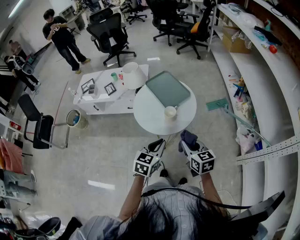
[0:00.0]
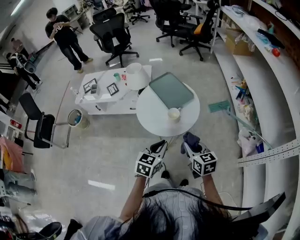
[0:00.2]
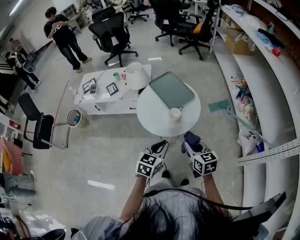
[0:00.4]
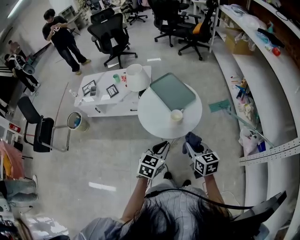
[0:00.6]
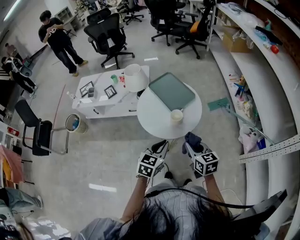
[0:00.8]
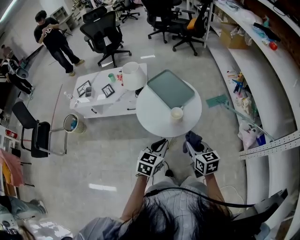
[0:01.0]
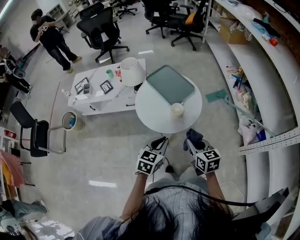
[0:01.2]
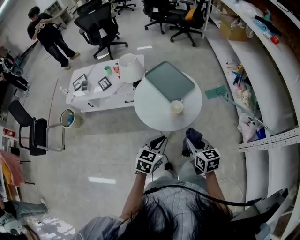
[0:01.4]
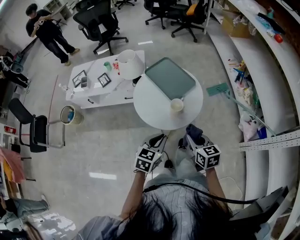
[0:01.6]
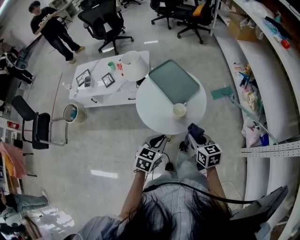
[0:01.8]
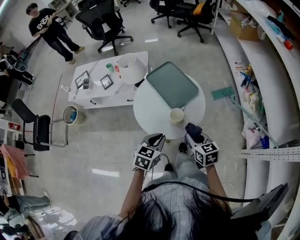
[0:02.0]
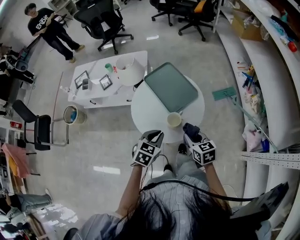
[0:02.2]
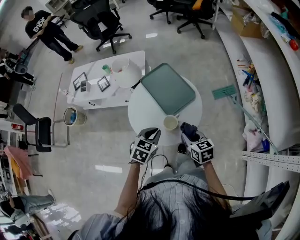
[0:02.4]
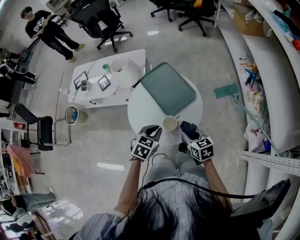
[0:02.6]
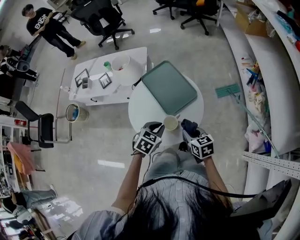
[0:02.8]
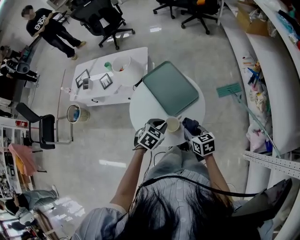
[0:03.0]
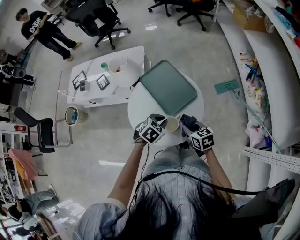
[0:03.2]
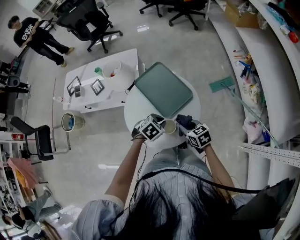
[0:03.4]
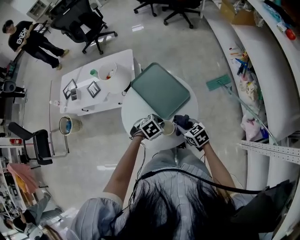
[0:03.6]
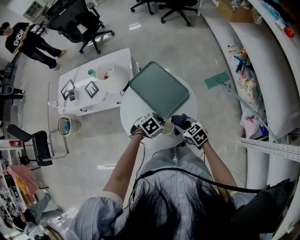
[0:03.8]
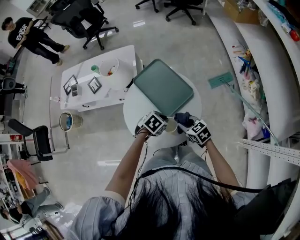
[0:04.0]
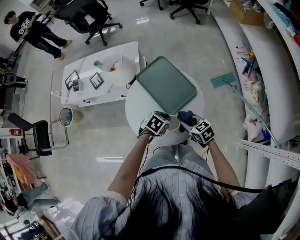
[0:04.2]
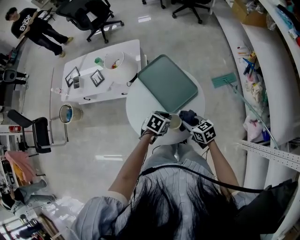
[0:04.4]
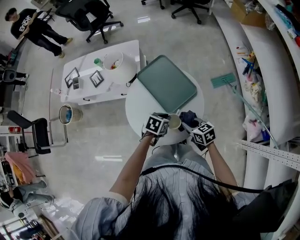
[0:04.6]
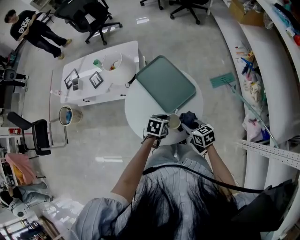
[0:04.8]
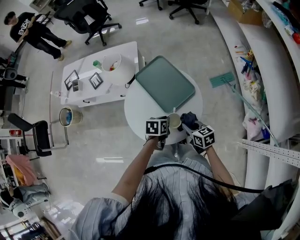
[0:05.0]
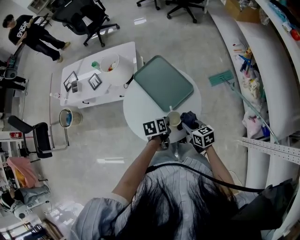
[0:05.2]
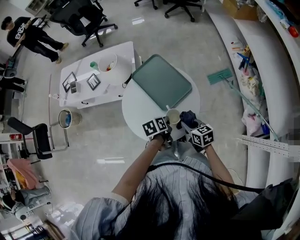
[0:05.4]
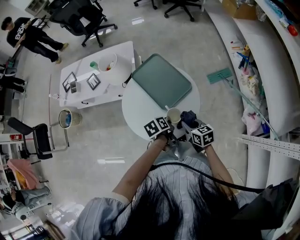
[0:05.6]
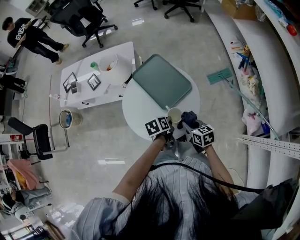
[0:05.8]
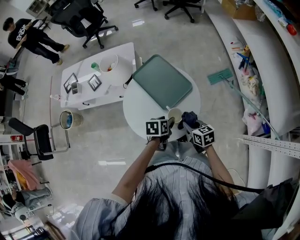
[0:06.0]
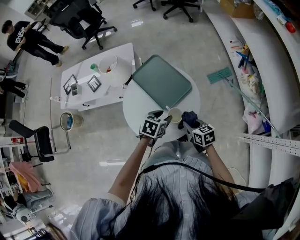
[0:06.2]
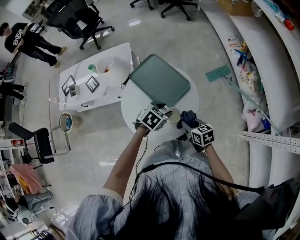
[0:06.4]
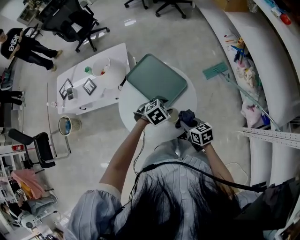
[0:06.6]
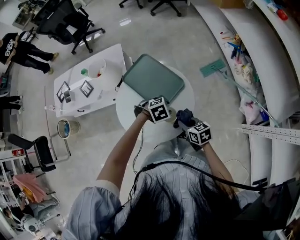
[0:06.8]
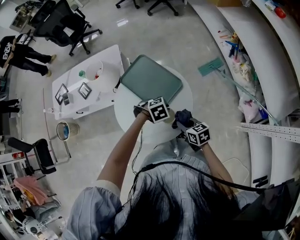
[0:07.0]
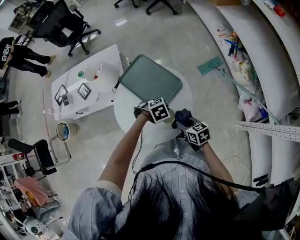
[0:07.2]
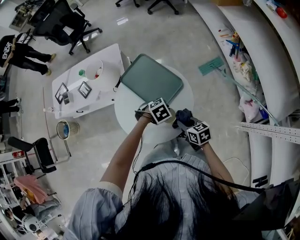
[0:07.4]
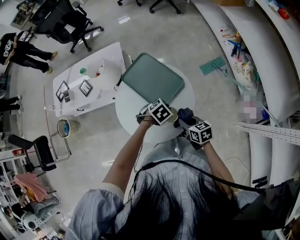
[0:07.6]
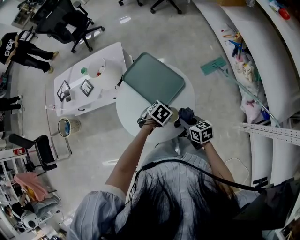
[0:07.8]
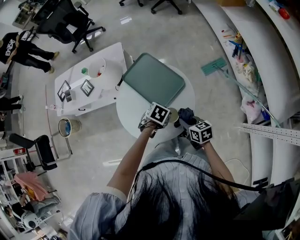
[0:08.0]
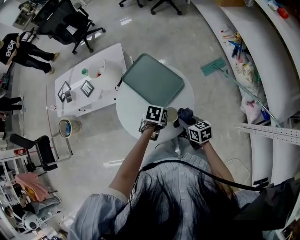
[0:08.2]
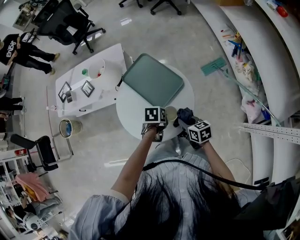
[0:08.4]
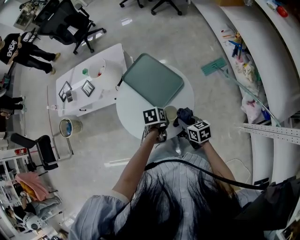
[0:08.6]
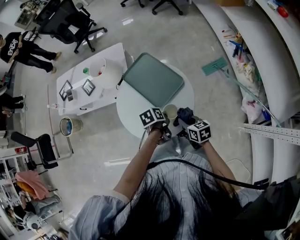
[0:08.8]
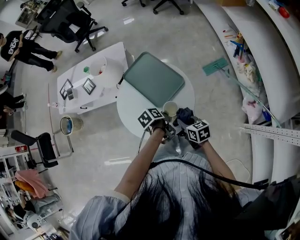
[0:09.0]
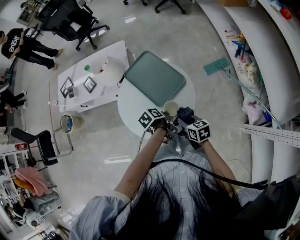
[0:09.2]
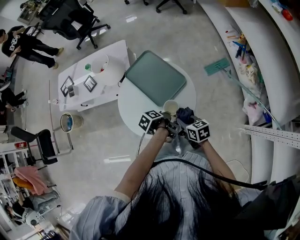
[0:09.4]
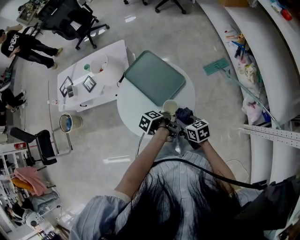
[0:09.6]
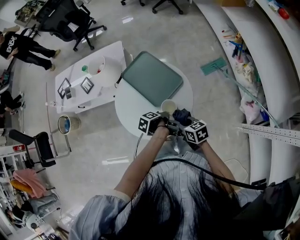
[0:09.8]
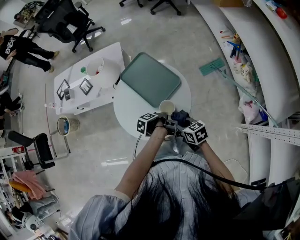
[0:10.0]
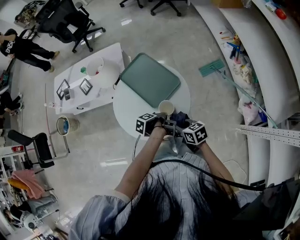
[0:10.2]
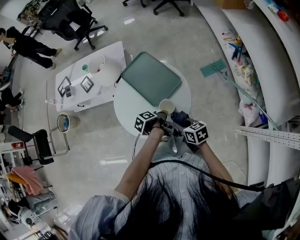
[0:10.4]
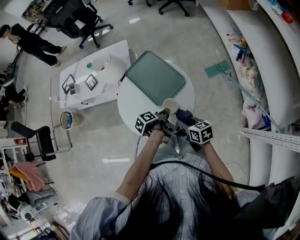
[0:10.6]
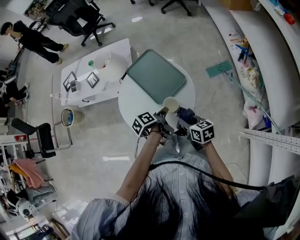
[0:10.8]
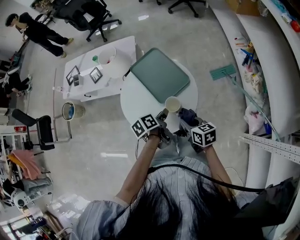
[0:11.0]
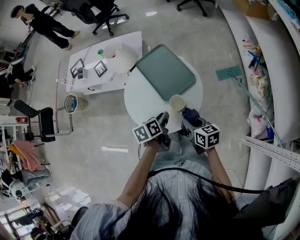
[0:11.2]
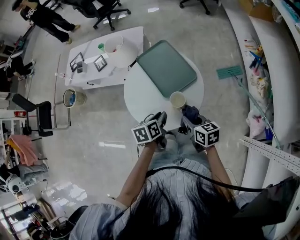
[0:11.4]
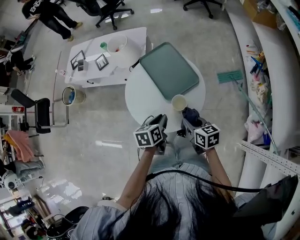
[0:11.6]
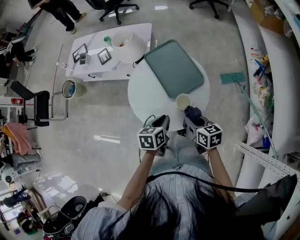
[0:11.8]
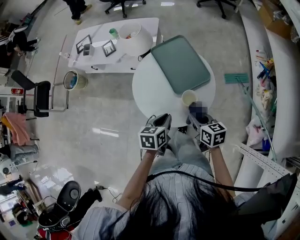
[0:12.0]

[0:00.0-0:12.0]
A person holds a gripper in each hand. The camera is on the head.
0:00.0 to 0:01.6: The left gripper moves some 5 cm; the right gripper changes place by roughly 5 cm.
0:01.6 to 0:03.0: Both grippers travel together forward and downward, some 20 cm. The left gripper turns by approximately 20 degrees.
0:03.0 to 0:04.4: The right gripper moves some 5 cm. Meanwhile the left gripper moves downward, roughly 5 cm.
0:04.4 to 0:06.0: The left gripper changes its angle by some 30 degrees, and opens.
0:06.0 to 0:07.6: The left gripper moves about 5 cm, rotates around the line of its fingers by roughly 60 degrees, clockwise from behind, and closes its fingers.
0:07.6 to 0:09.0: The left gripper moves some 5 cm, and rolls counterclockwise, seen from behind, by roughly 90 degrees.
0:09.0 to 0:10.4: The left gripper swivels some 30 degrees.
0:10.4 to 0:12.0: The left gripper heads to the left and upward, covering roughly 10 cm, and twists approximately 60 degrees clockwise, seen from behind.

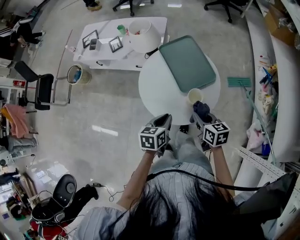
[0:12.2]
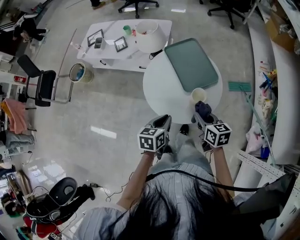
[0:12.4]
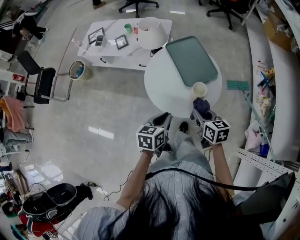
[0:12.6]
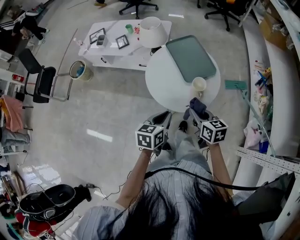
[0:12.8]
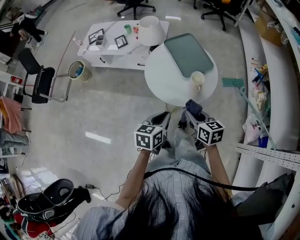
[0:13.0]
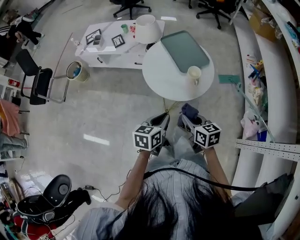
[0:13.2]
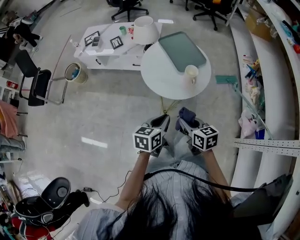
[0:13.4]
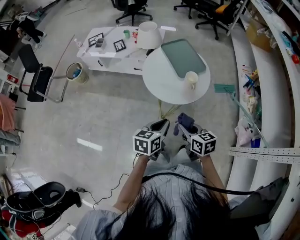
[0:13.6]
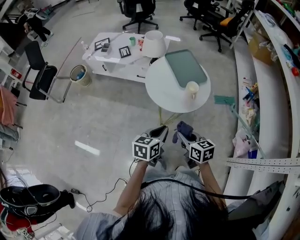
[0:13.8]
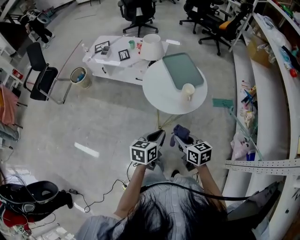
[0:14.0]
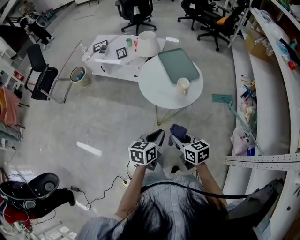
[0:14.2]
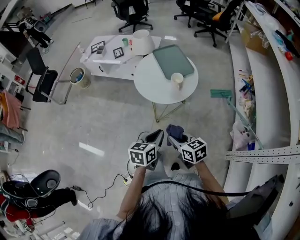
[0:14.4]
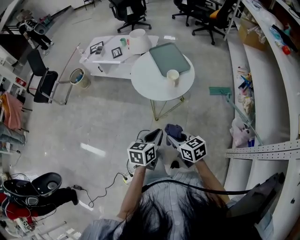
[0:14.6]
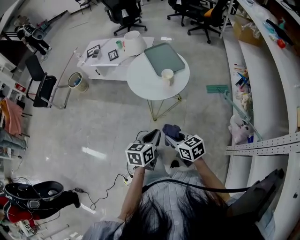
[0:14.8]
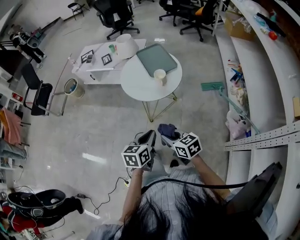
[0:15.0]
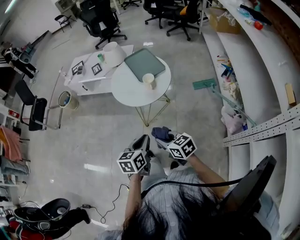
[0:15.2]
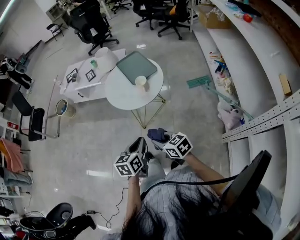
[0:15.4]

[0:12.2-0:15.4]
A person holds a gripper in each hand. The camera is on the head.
0:12.2 to 0:13.8: The left gripper is displaced backward and upward by some 20 cm; the right gripper shifts about 25 cm backward and to the left.
0:13.8 to 0:15.4: Both grippers travel together backward and to the right, some 15 cm.

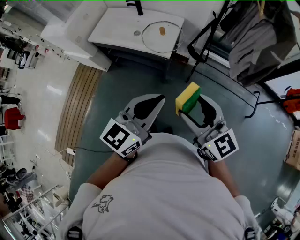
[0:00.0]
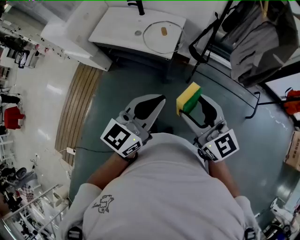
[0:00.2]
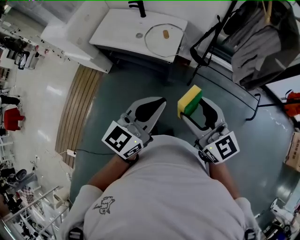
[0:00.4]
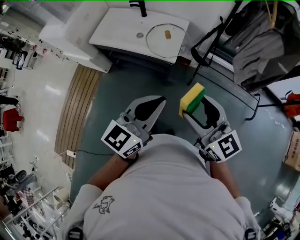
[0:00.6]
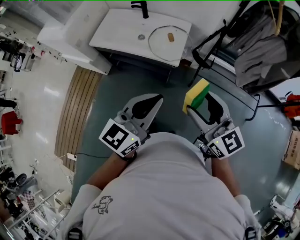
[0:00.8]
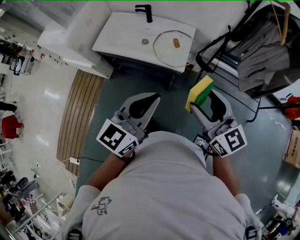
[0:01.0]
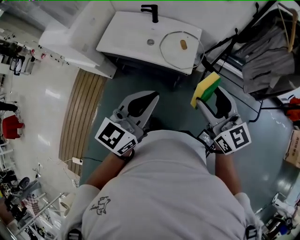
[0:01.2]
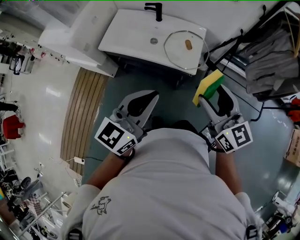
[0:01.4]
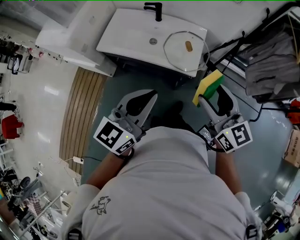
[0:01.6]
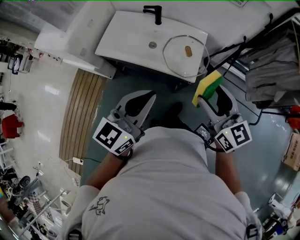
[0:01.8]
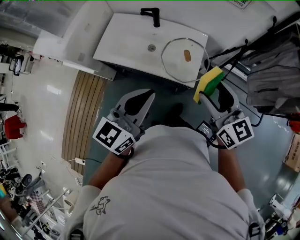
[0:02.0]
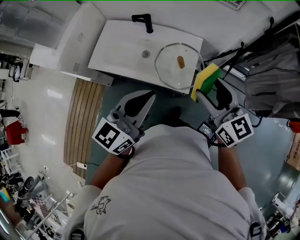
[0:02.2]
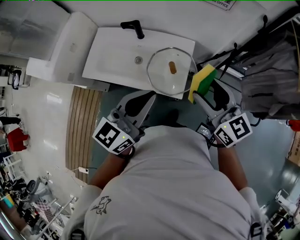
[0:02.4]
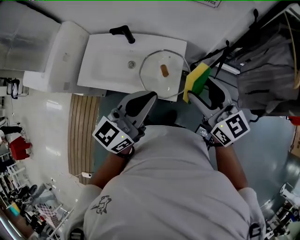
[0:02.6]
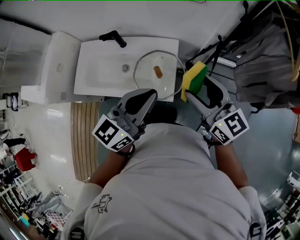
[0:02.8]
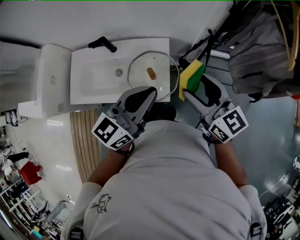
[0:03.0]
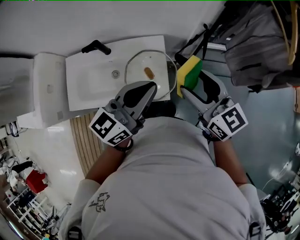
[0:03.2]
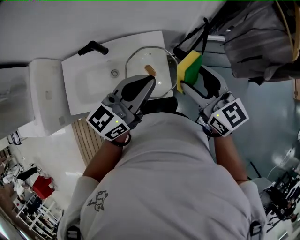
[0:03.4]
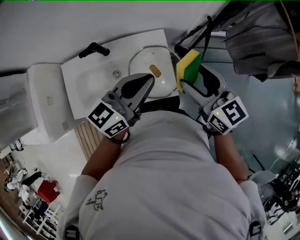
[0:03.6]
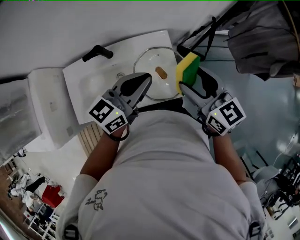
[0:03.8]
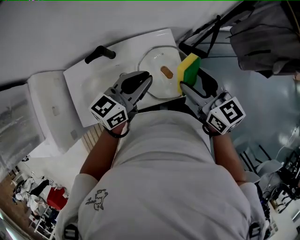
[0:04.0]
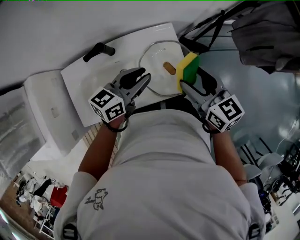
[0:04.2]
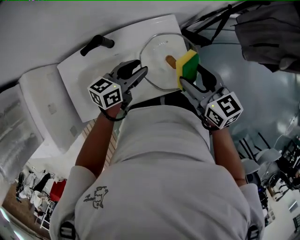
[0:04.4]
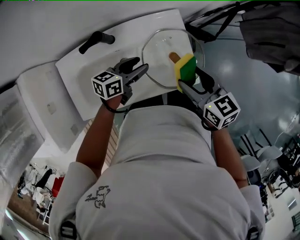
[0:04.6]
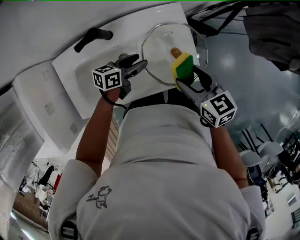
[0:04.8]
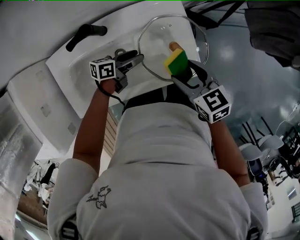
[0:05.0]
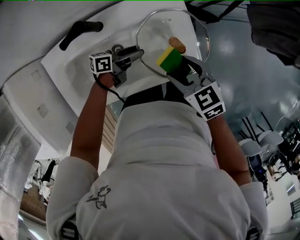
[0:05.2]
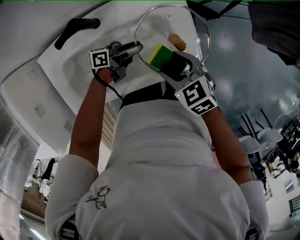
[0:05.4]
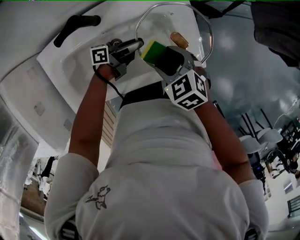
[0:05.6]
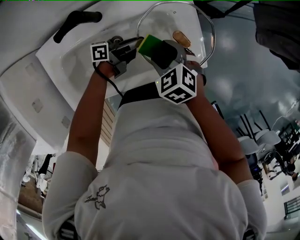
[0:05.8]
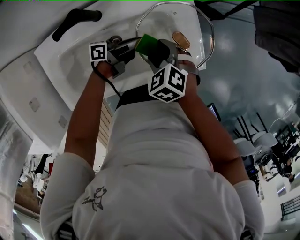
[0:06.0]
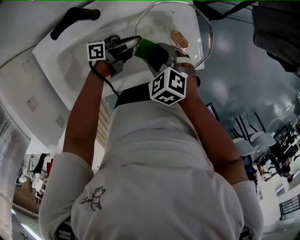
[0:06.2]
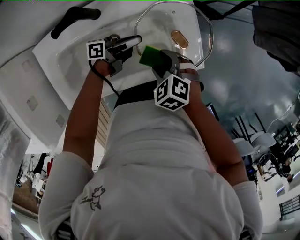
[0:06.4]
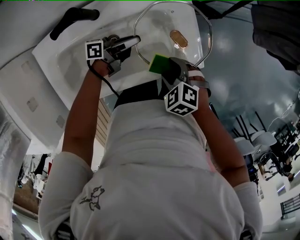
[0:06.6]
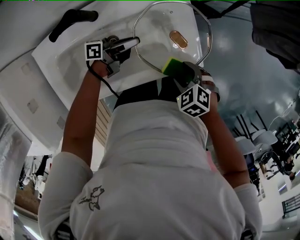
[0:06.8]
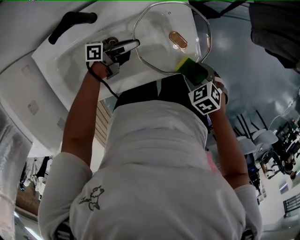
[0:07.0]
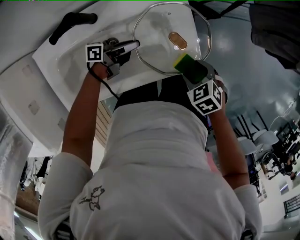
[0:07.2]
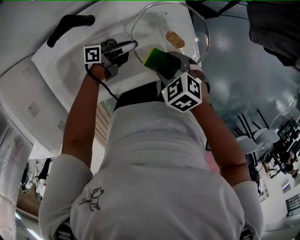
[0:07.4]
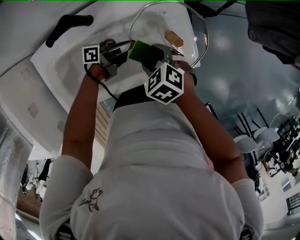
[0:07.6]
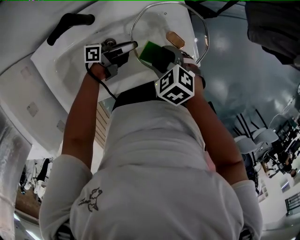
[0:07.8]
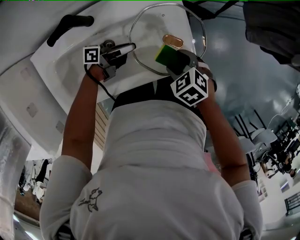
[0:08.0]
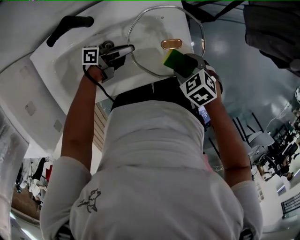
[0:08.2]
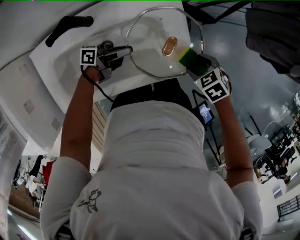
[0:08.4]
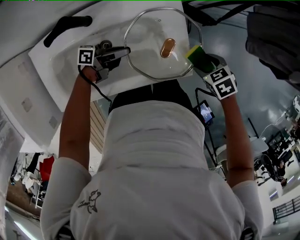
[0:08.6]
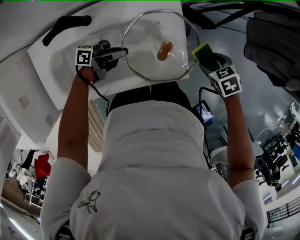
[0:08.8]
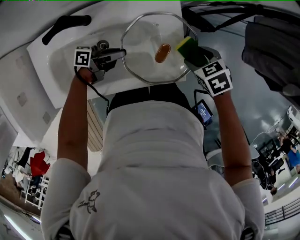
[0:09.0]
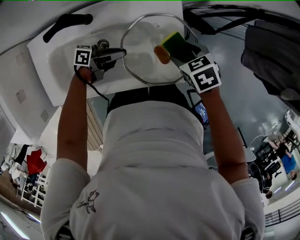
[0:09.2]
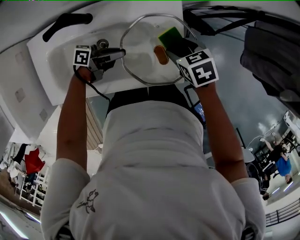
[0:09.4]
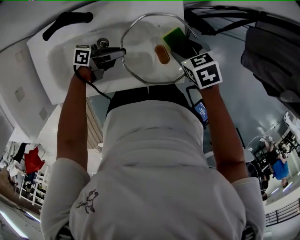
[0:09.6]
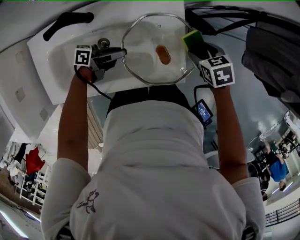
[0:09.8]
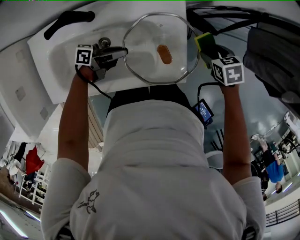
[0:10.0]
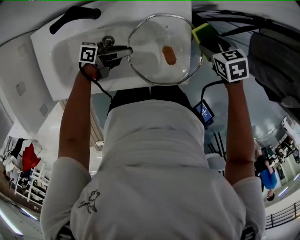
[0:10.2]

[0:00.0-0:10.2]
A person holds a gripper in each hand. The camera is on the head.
0:00.0 to 0:01.4: The right gripper moves forward and to the left, some 25 cm; the left gripper is displaced to the left and forward by some 30 cm.
0:01.4 to 0:03.0: Both grippers travel together forward and to the right, roughly 30 cm. The left gripper changes its angle by some 20 degrees.
0:03.0 to 0:04.4: The right gripper moves downward and to the left, some 20 cm, and changes its angle by approximately 30 degrees; the left gripper heads downward, to the left and forward, covering some 35 cm, turns by some 40 degrees, and opens its fingers.
0:04.4 to 0:05.8: The left gripper travels downward by some 20 cm, rolls counterclockwise, seen from behind, by roughly 40 degrees, and closes its fingers; the right gripper heads downward and to the left, covering approximately 25 cm, and tips its fingers downward by approximately 30 degrees.
0:05.8 to 0:07.2: The right gripper changes place by roughly 15 cm.
0:07.2 to 0:08.8: The right gripper ends up roughly 15 cm from where it was.
0:08.8 to 0:10.2: The right gripper ends up approximately 15 cm from where it was.
